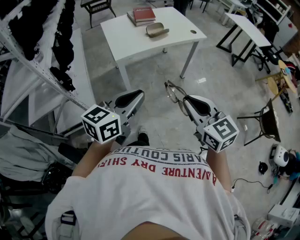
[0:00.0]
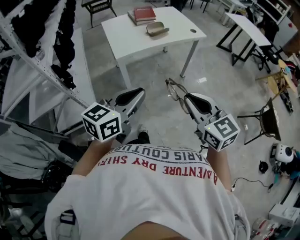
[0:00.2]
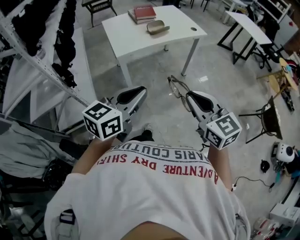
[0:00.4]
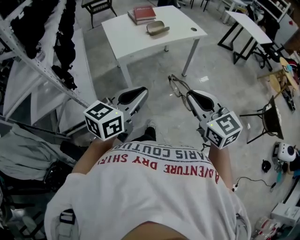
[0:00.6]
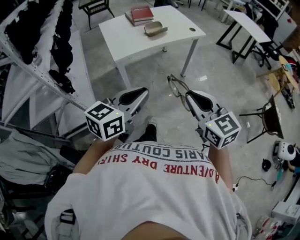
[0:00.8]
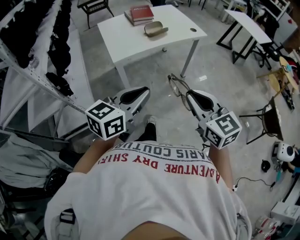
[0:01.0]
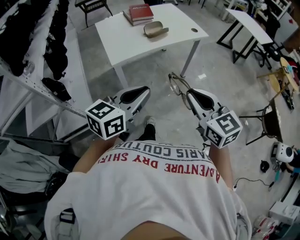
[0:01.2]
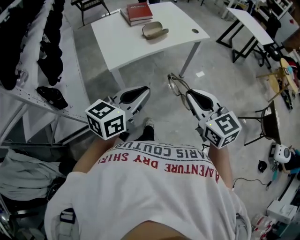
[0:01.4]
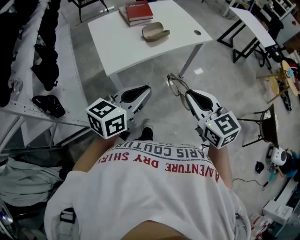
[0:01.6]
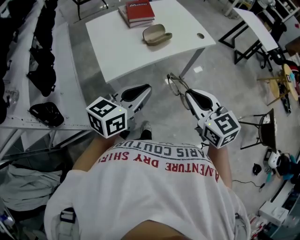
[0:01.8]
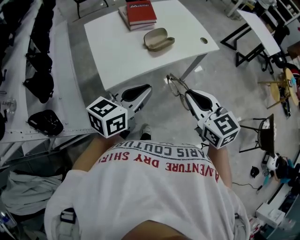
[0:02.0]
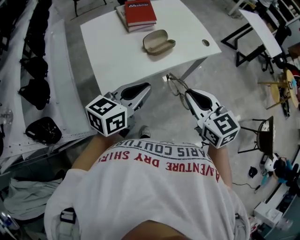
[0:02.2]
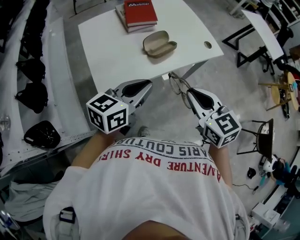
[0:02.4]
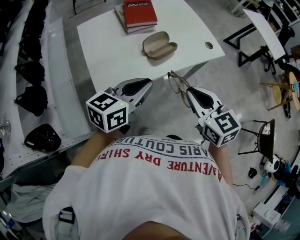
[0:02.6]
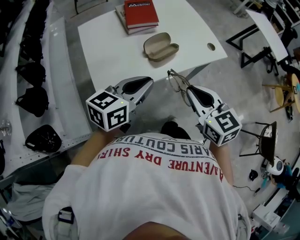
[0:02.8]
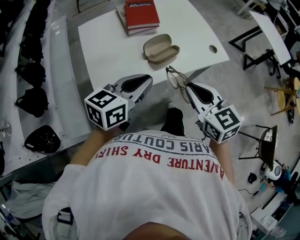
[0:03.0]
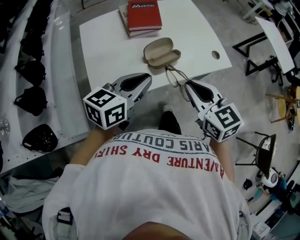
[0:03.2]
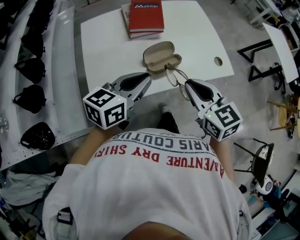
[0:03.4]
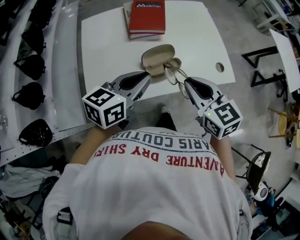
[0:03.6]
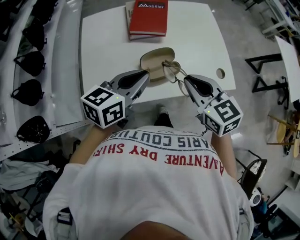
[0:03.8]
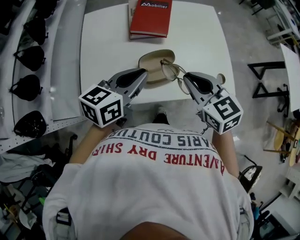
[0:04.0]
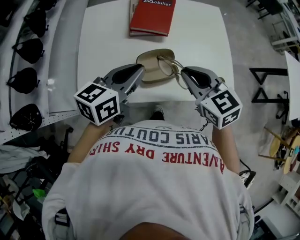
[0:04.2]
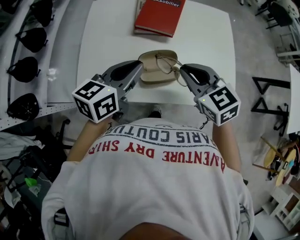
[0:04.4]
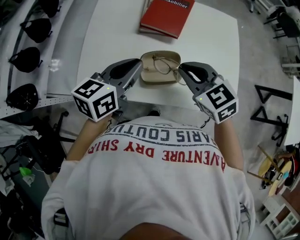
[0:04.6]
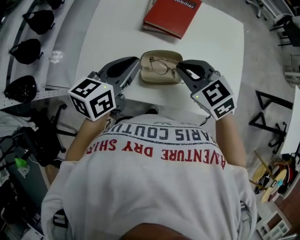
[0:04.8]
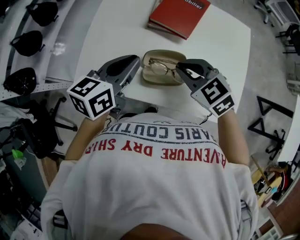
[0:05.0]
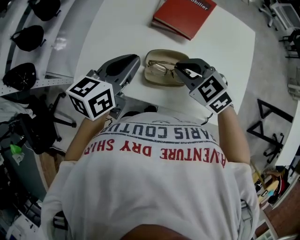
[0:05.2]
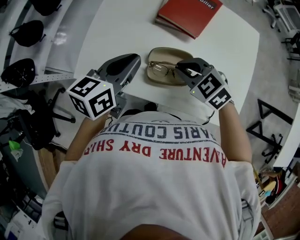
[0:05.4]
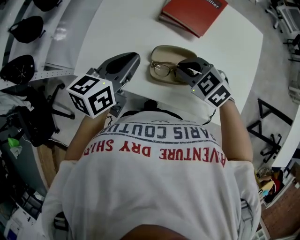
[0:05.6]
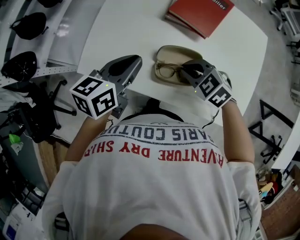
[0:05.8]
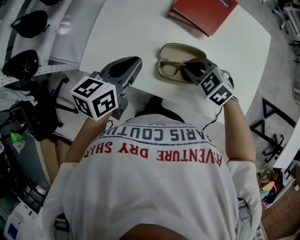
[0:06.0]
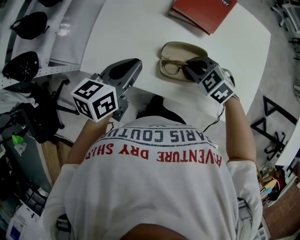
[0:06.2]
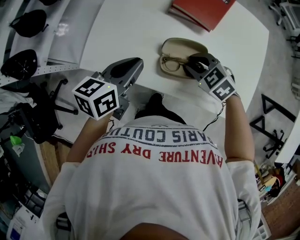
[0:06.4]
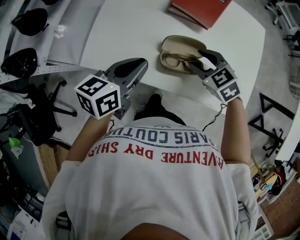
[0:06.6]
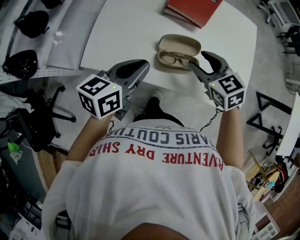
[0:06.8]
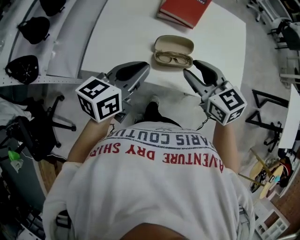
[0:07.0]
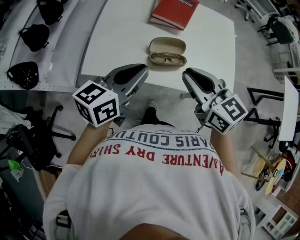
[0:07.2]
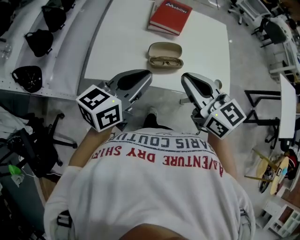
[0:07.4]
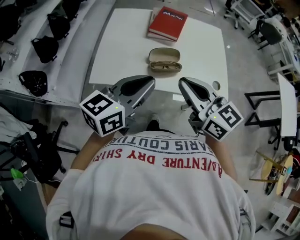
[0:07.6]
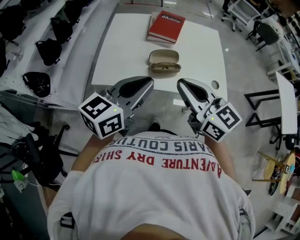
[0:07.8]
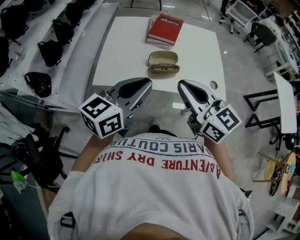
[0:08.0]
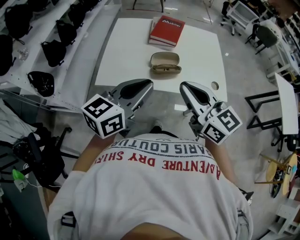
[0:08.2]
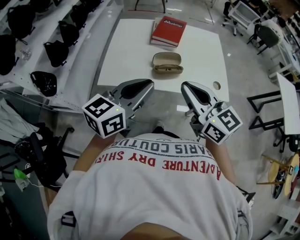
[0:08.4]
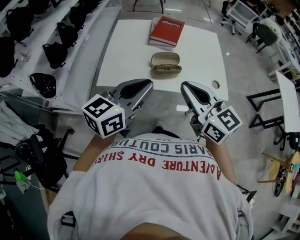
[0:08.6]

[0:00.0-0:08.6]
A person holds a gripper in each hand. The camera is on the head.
0:00.0 to 0:01.4: The two grippers go roughly 15 cm forward.
0:01.4 to 0:02.8: Both grippers travel together forward, some 30 cm.
0:02.8 to 0:04.4: The left gripper changes place by roughly 20 cm, and swivels about 30 degrees, while the right gripper ends up about 25 cm from where it was, and changes its angle by approximately 40 degrees.
0:04.4 to 0:05.8: The left gripper moves downward, some 5 cm, and changes its angle by about 20 degrees. Meanwhile the right gripper is displaced downward by approximately 15 cm, and rotates roughly 40 degrees.
0:05.8 to 0:07.2: The left gripper is displaced backward and upward by approximately 15 cm, and rotates some 20 degrees. The right gripper is displaced upward and backward by roughly 20 cm, tips its fingers upward by about 40 degrees, and opens, then closes again.
0:07.2 to 0:08.6: Both grippers travel together backward and upward, roughly 15 cm.

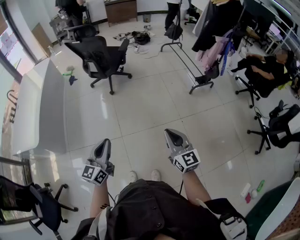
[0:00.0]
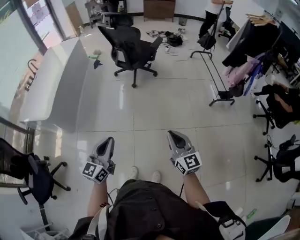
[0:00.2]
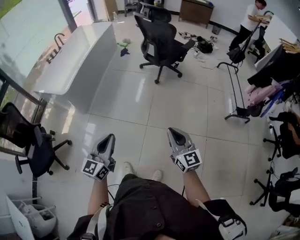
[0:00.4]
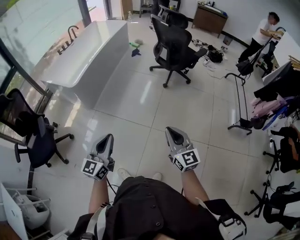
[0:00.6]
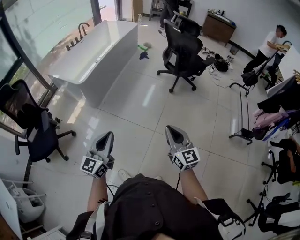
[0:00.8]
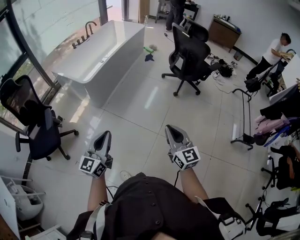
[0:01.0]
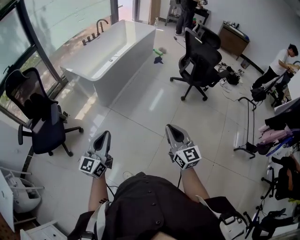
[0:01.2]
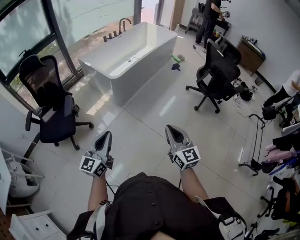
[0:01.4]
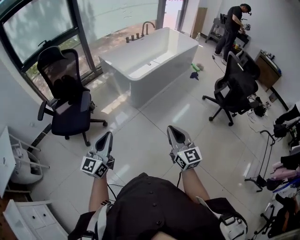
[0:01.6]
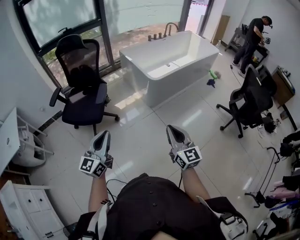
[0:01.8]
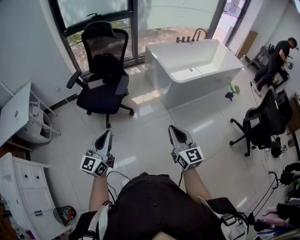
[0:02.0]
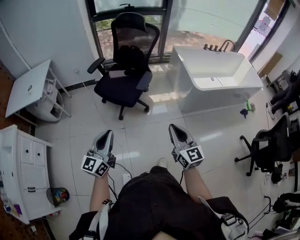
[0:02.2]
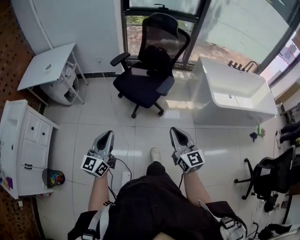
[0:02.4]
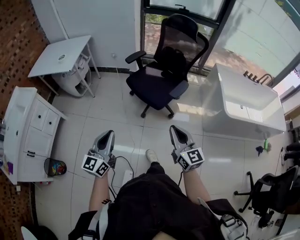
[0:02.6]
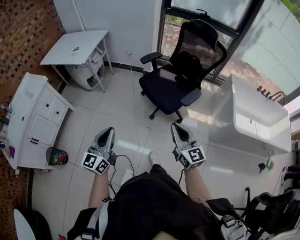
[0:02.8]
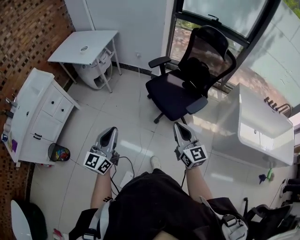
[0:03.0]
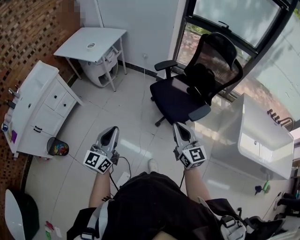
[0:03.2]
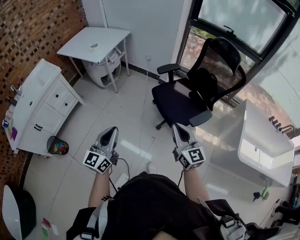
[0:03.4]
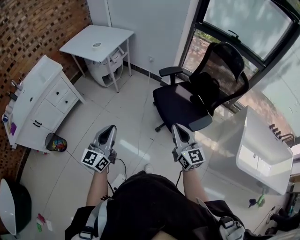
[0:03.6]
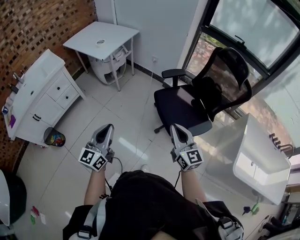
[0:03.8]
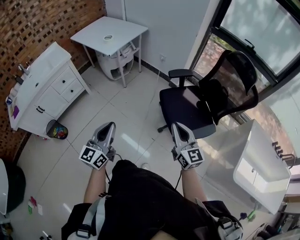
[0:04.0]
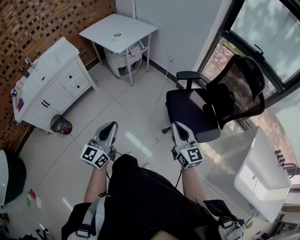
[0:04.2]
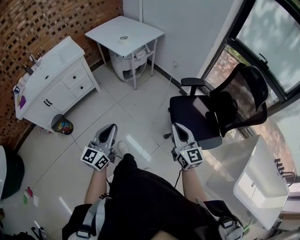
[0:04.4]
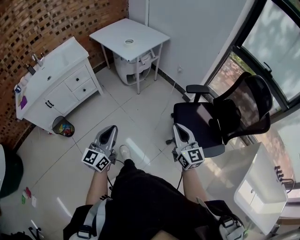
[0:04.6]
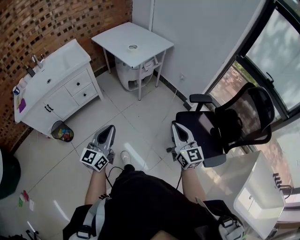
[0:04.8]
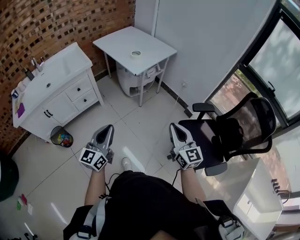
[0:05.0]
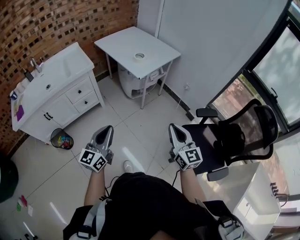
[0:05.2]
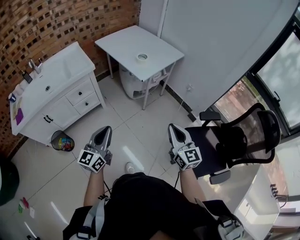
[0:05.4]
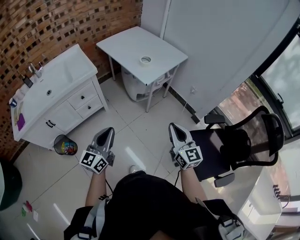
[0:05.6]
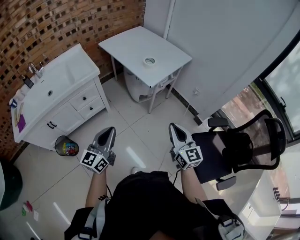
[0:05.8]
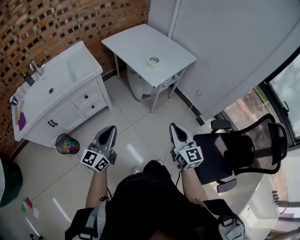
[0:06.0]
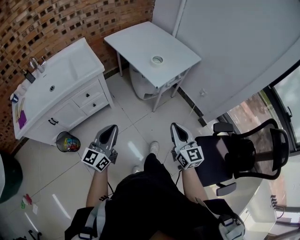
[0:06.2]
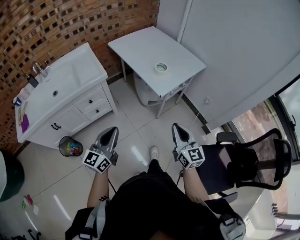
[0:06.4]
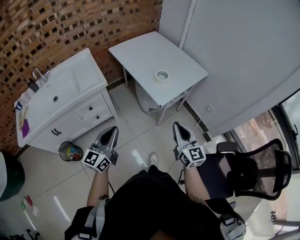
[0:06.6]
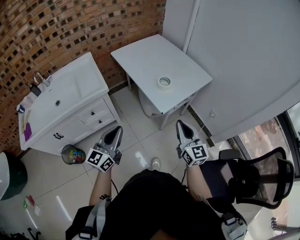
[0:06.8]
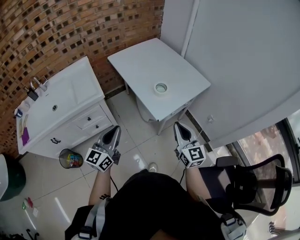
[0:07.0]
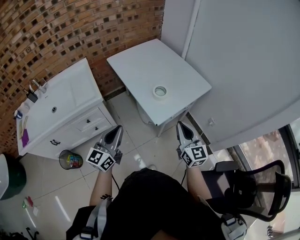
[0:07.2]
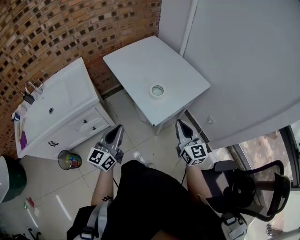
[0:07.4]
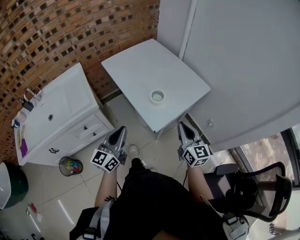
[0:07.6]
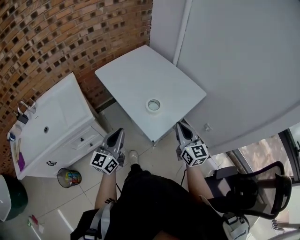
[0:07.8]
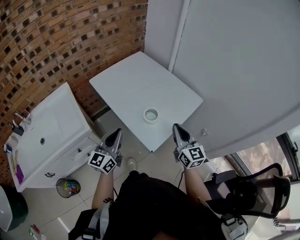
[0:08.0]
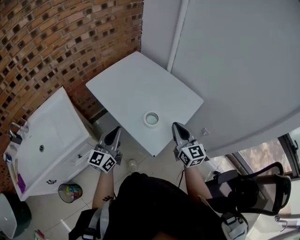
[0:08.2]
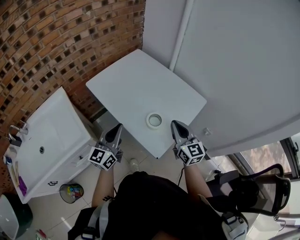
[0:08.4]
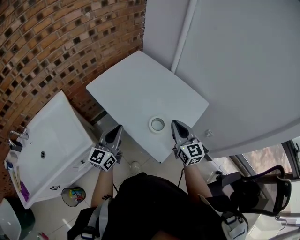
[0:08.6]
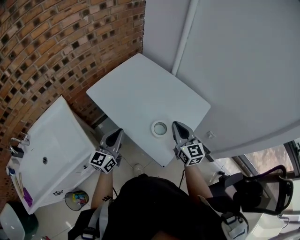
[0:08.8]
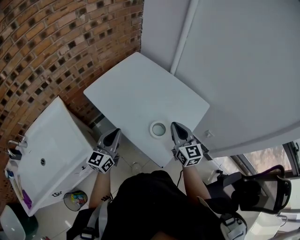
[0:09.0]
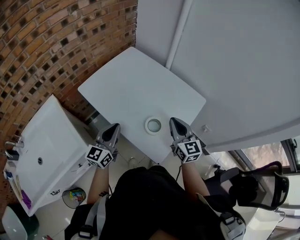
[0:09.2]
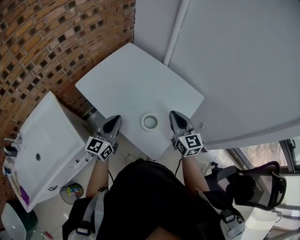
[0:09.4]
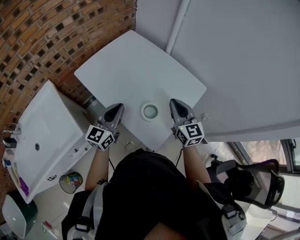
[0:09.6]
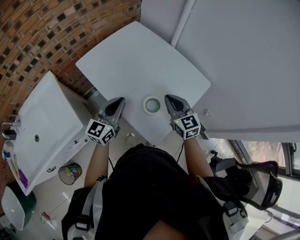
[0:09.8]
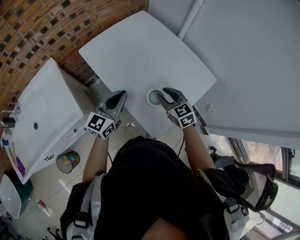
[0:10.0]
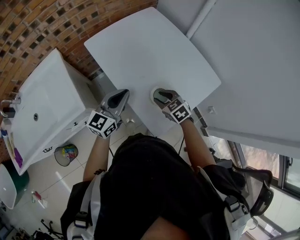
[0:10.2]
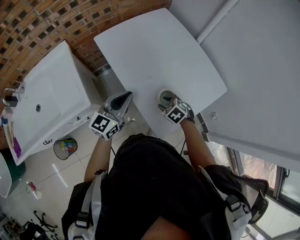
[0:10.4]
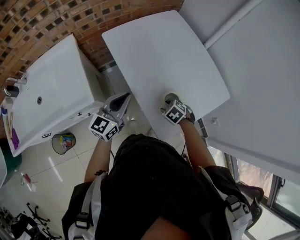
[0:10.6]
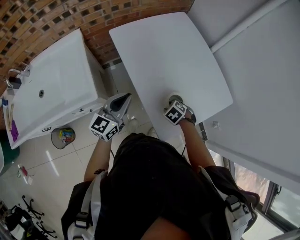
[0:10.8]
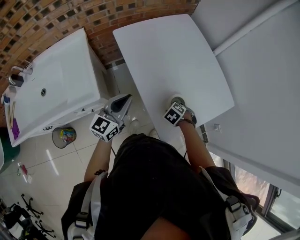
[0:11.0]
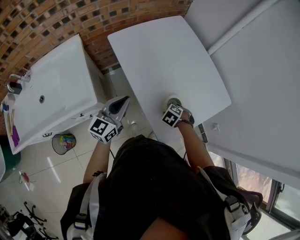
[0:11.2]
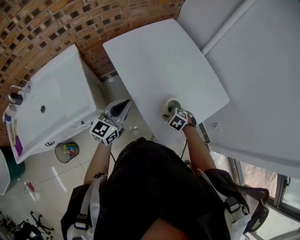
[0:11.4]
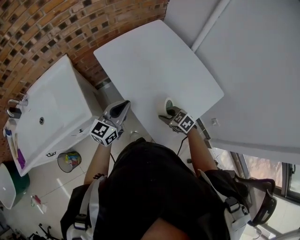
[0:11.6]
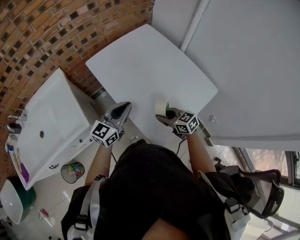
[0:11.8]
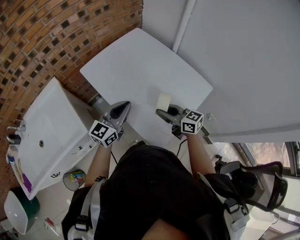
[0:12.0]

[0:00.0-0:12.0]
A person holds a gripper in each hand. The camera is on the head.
0:00.0 to 0:01.6: The two grippers travel together, about 50 cm. The left gripper swivels roughly 50 degrees; the right gripper changes its angle by some 50 degrees.
0:01.6 to 0:03.0: The left gripper ends up roughly 40 cm from where it was, and swivels about 60 degrees; the right gripper shifts by some 50 cm, and rotates about 70 degrees.
0:03.0 to 0:04.4: The left gripper goes approximately 5 cm forward, and changes its angle by about 20 degrees. Meanwhile the right gripper goes roughly 15 cm forward, and turns by some 20 degrees.
0:04.4 to 0:06.0: The two grippers go some 40 cm forward and to the left.
0:06.0 to 0:07.6: Both grippers move forward, about 30 cm.
0:07.6 to 0:09.0: The grippers both shift forward by some 25 cm.
0:09.0 to 0:10.4: The right gripper travels downward by about 20 cm, tips its fingers downward by about 50 degrees, and opens its fingers.
0:10.4 to 0:12.0: The right gripper heads upward, covering some 15 cm, and tilts its fingers approximately 50 degrees upward. Meanwhile the left gripper shifts by roughly 5 cm.

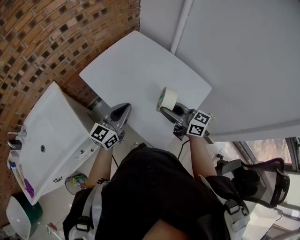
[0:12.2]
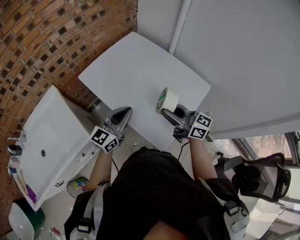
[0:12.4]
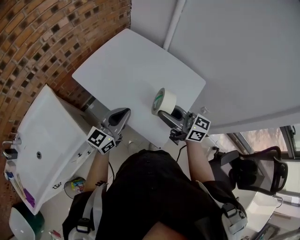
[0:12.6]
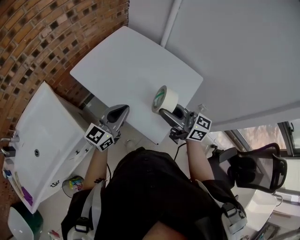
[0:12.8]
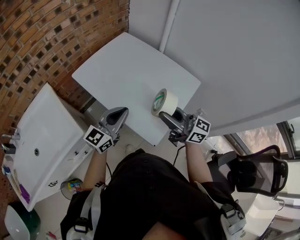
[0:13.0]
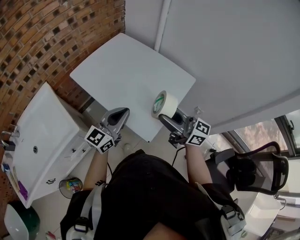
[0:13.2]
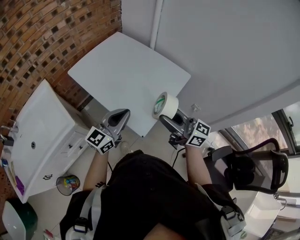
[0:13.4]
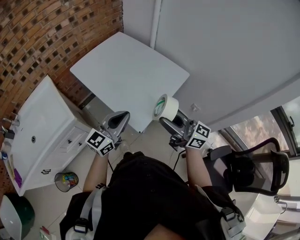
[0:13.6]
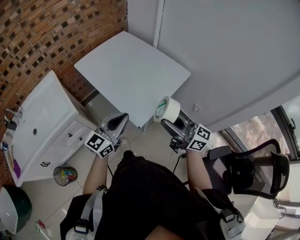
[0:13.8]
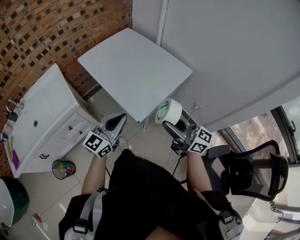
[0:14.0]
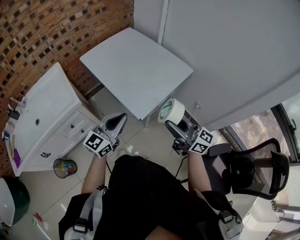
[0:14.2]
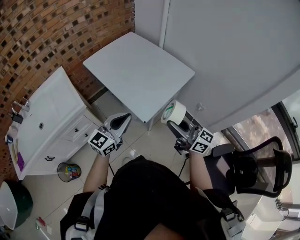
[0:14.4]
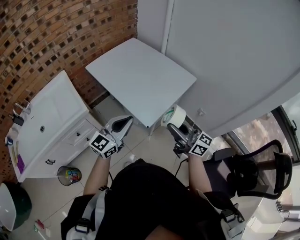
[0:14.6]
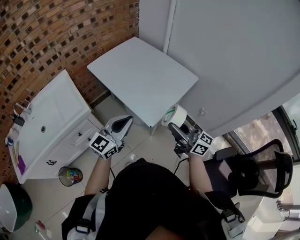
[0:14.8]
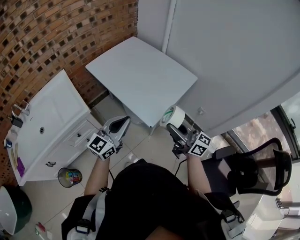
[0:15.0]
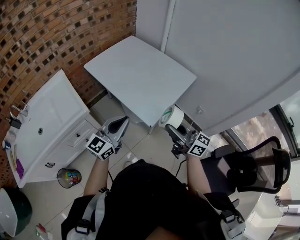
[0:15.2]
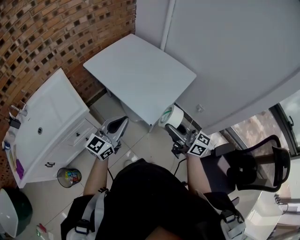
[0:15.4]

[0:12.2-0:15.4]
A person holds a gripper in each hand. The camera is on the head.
0:12.2 to 0:13.8: Both grippers travel together backward and to the right, roughly 25 cm.
0:13.8 to 0:15.4: Both grippers move to the left, roughly 5 cm.
